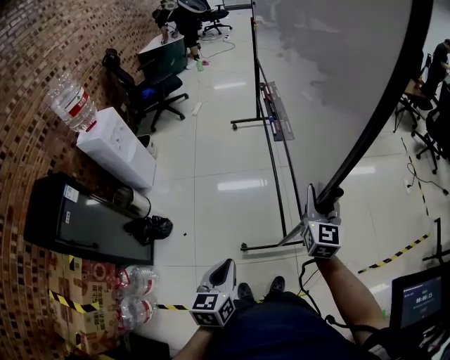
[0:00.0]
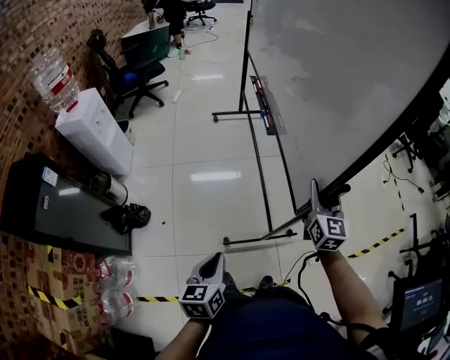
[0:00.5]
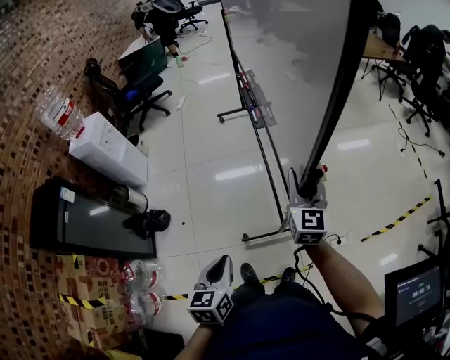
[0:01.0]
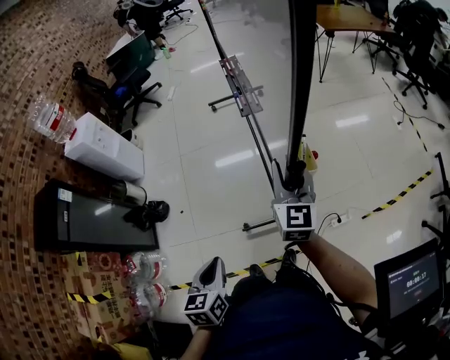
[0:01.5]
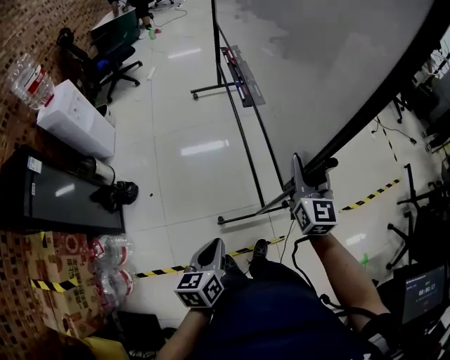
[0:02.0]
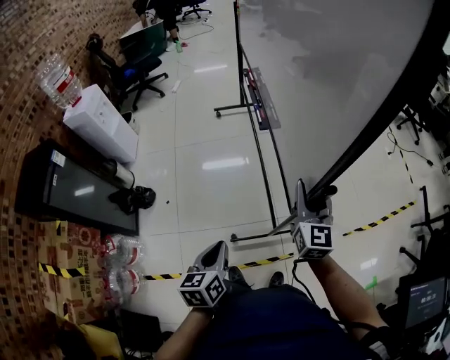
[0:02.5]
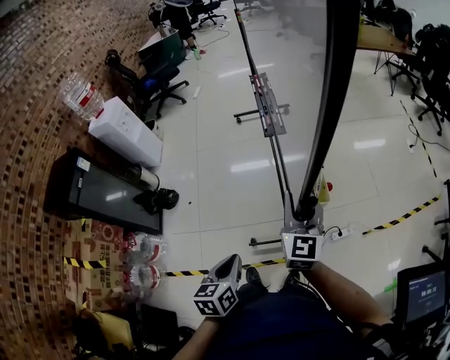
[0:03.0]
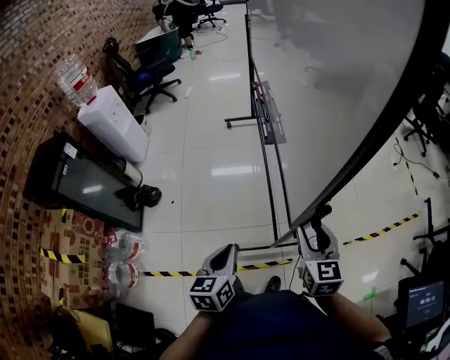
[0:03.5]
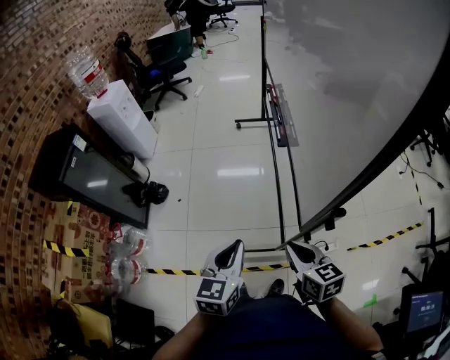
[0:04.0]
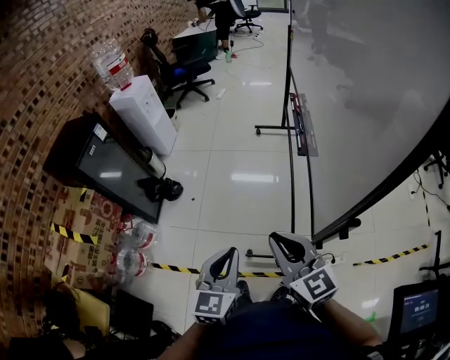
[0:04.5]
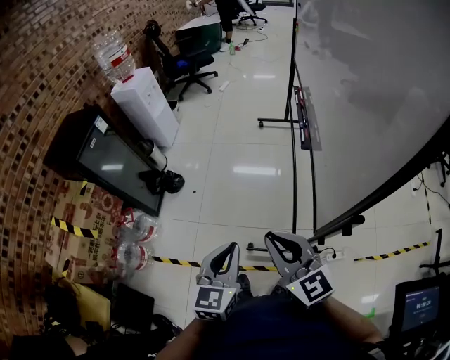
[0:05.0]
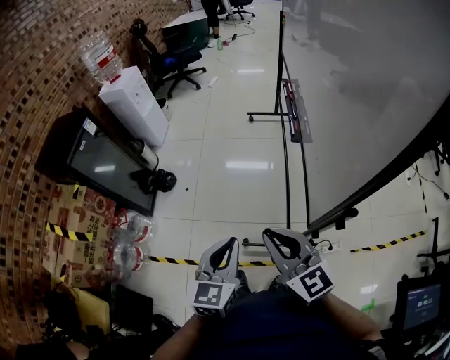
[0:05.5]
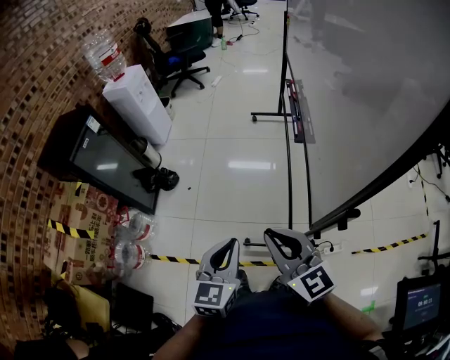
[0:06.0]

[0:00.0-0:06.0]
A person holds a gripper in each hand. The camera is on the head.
0:00.0 to 0:02.0: Both grippers travel together backward and to the right, roughly 15 cm.
0:02.0 to 0:04.0: The left gripper heads upward, covering some 10 cm, and rotates some 20 degrees; the right gripper heads backward and downward, covering approximately 20 cm, and turns by about 50 degrees.
0:04.0 to 0:06.0: The right gripper is displaced upward and to the left by approximately 15 cm, and changes its angle by about 30 degrees.

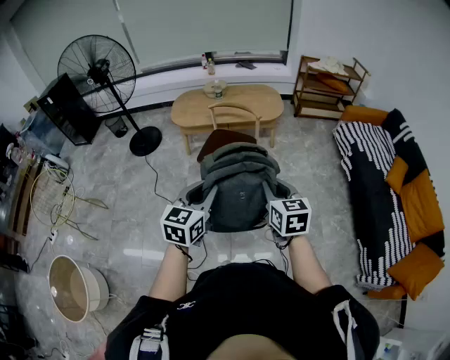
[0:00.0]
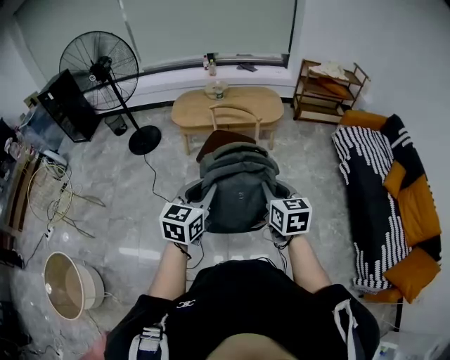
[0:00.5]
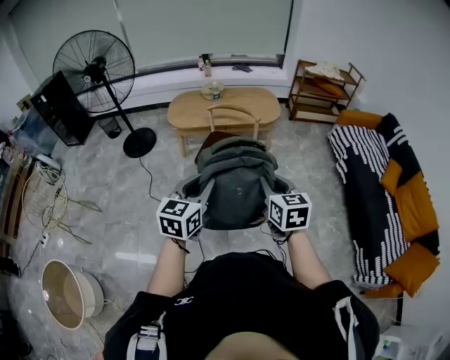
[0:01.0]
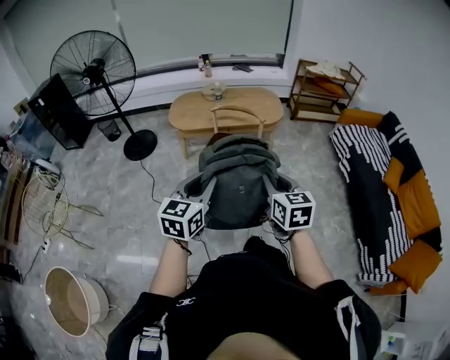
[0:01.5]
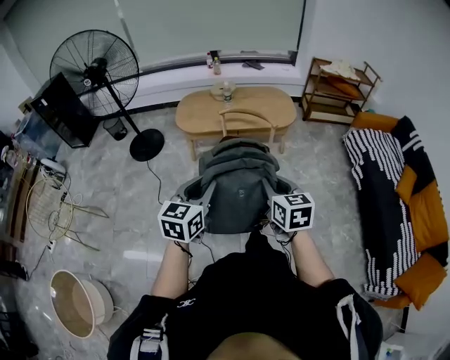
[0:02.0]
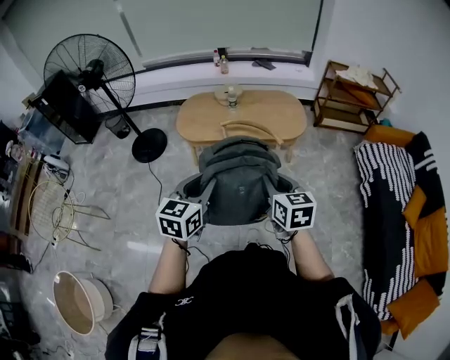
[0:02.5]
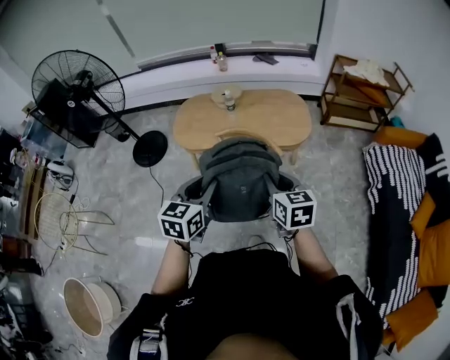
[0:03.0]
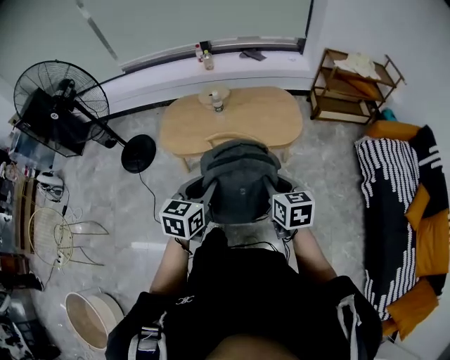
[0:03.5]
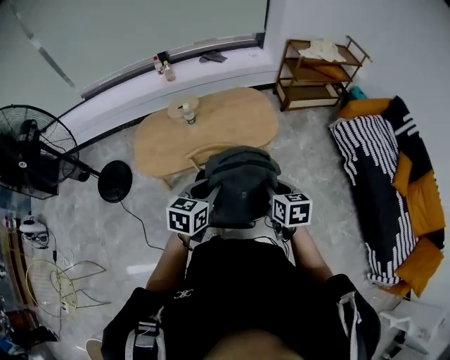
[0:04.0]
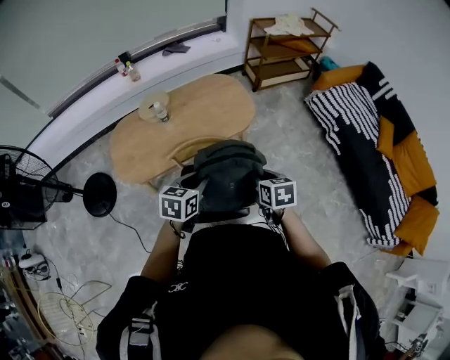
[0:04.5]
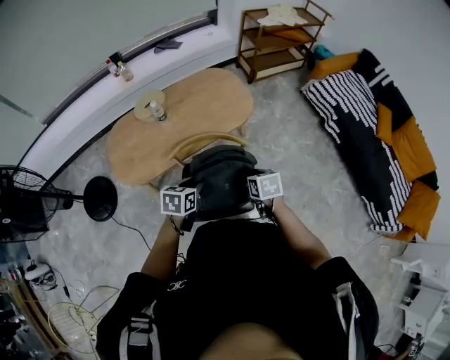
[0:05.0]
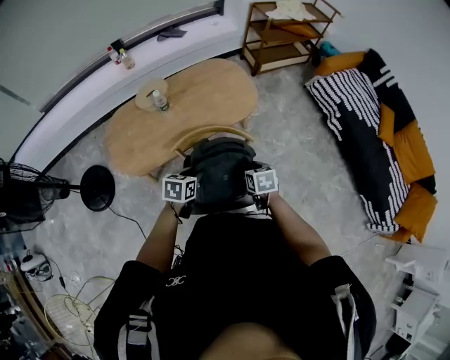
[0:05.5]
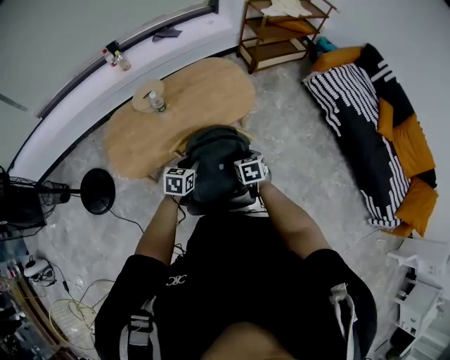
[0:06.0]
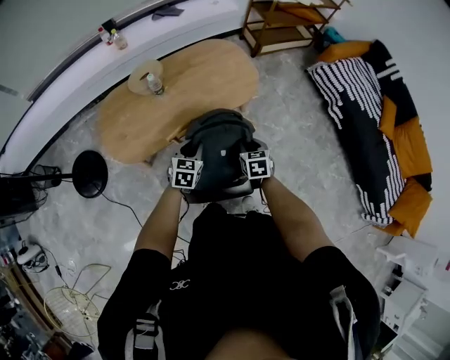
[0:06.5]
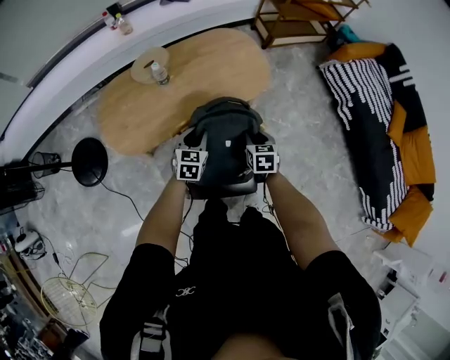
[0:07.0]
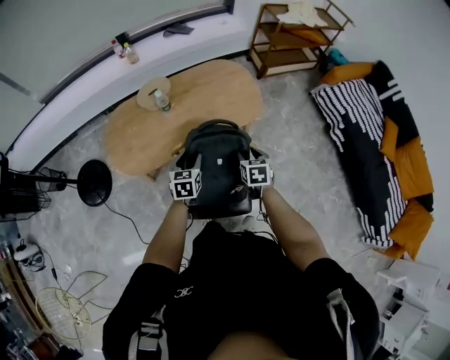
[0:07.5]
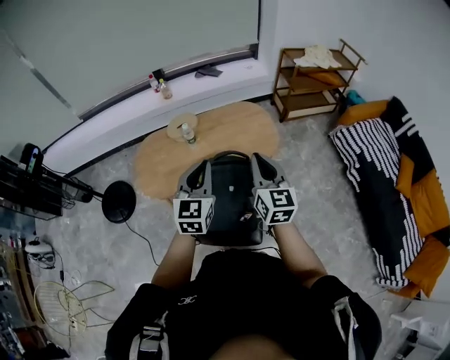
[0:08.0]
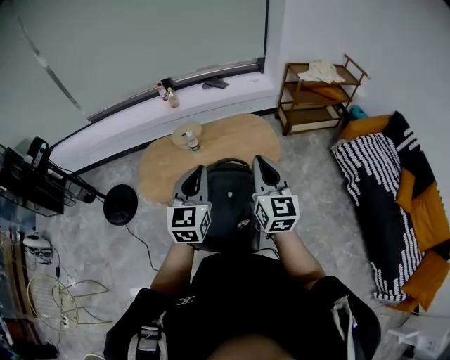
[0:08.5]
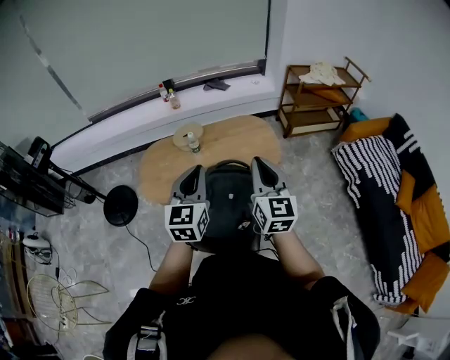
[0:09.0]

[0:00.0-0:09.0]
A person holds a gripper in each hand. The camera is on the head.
0:00.0 to 0:02.0: Both grippers travel together forward and to the left, about 20 cm.
0:02.0 to 0:04.5: Both grippers are carried some 50 cm. The right gripper rotates about 30 degrees; the left gripper changes its angle by roughly 40 degrees.
0:04.5 to 0:07.0: Both grippers travel together downward, forward and to the left, approximately 25 cm.
0:07.0 to 0:09.0: Both grippers move upward, approximately 40 cm. The left gripper rotates about 30 degrees, and closes its fingers. The right gripper points its fingers some 50 degrees further upward, and closes.

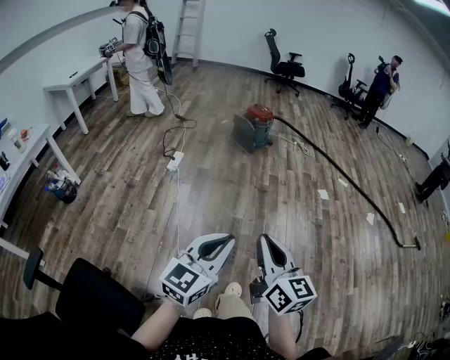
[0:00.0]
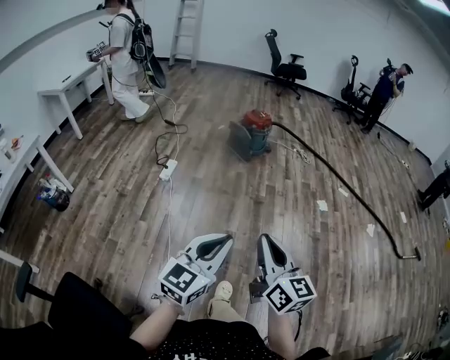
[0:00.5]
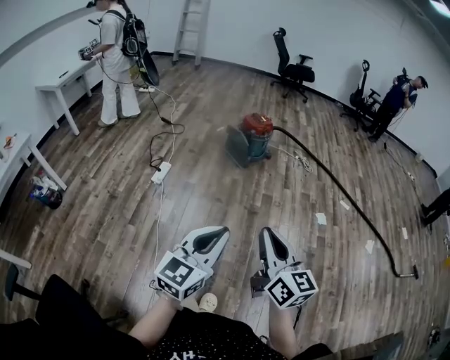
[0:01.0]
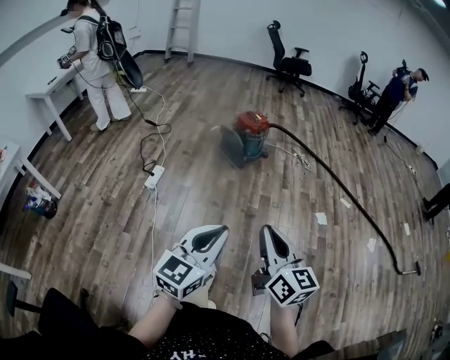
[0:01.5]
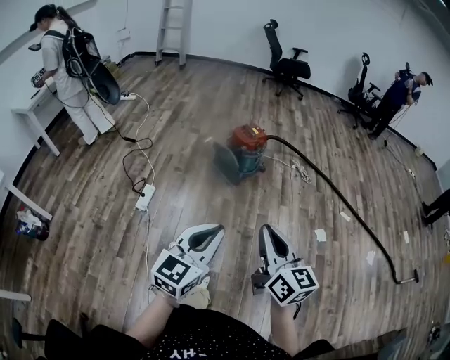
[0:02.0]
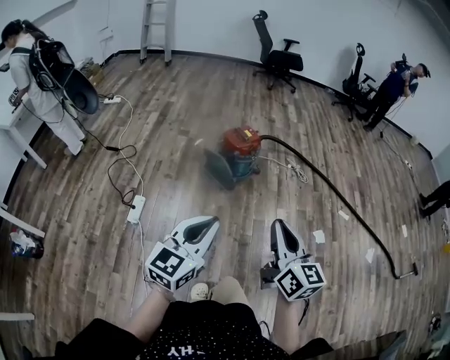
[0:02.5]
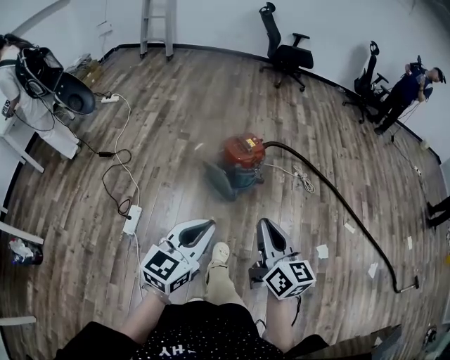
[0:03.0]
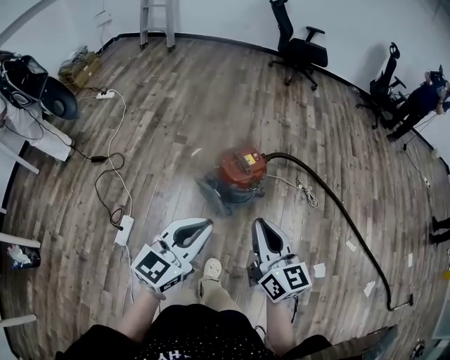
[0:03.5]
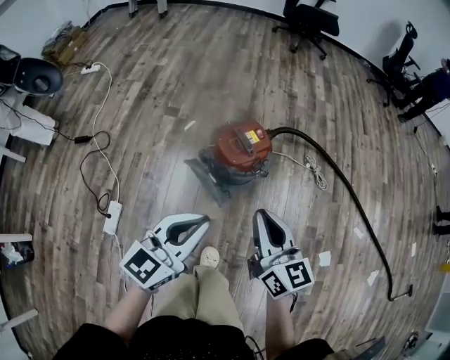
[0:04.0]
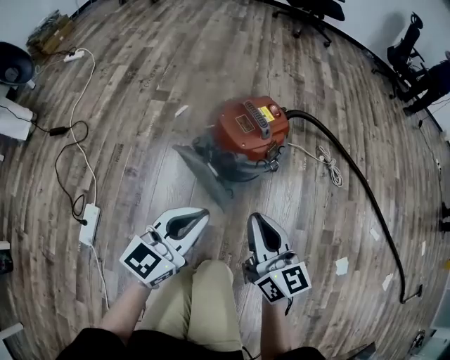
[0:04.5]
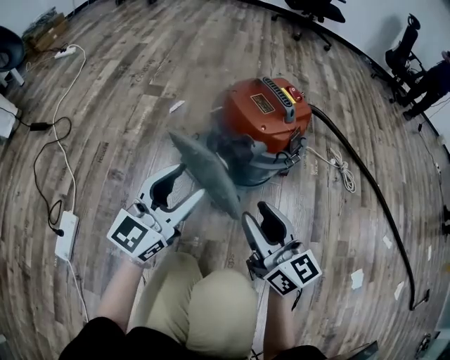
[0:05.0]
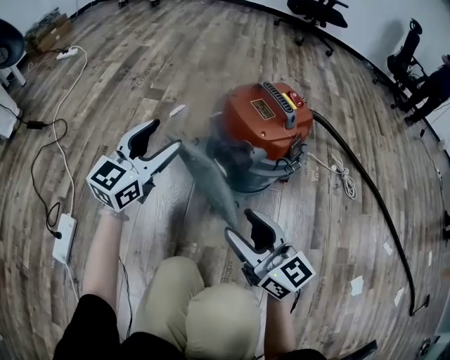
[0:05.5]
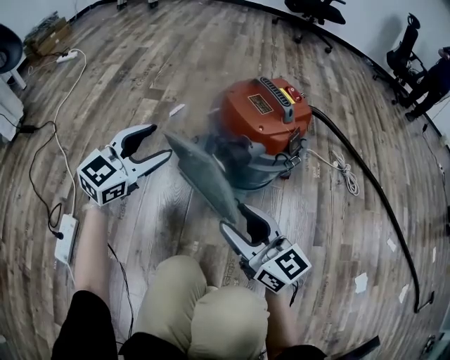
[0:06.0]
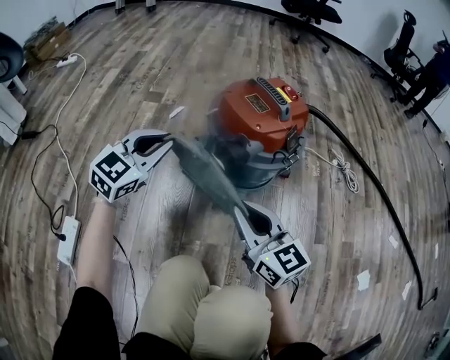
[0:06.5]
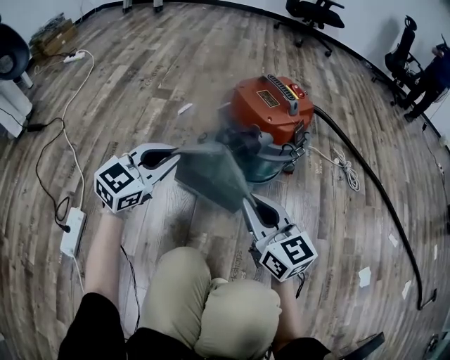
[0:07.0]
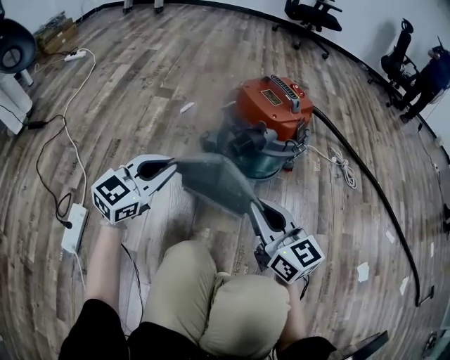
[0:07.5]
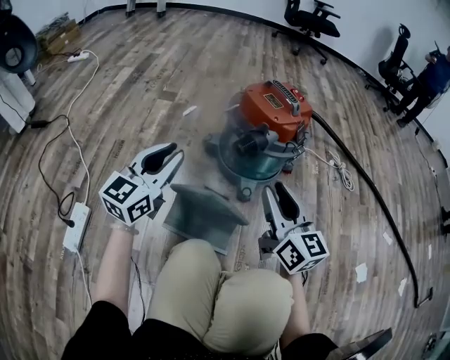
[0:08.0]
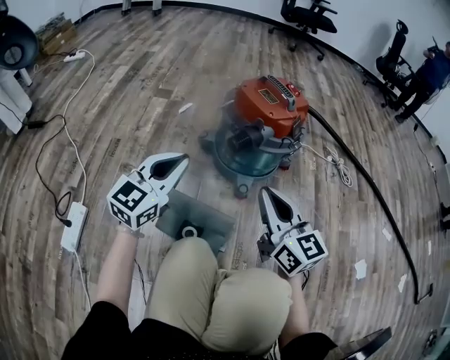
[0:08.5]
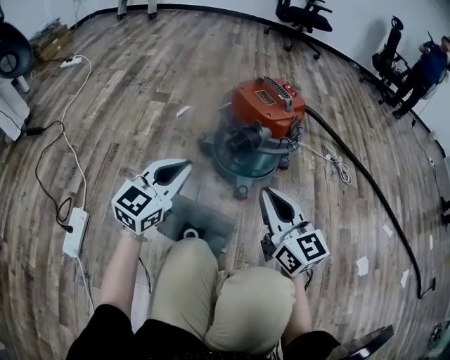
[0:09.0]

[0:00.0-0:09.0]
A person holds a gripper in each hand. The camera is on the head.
0:00.0 to 0:02.0: The pair of grippers is taken forward, approximately 60 cm.
0:02.0 to 0:04.5: Both grippers are carried forward, roughly 60 cm. The two grippers go some 40 cm downward.
0:04.5 to 0:07.0: The right gripper travels downward by roughly 20 cm, and opens and closes again. Meanwhile the left gripper moves downward, to the left and forward, approximately 25 cm, swivels approximately 20 degrees, and opens, then closes again.
0:07.0 to 0:09.0: The right gripper moves approximately 5 cm, and opens, then closes again. Meanwhile the left gripper shifts some 5 cm backward.

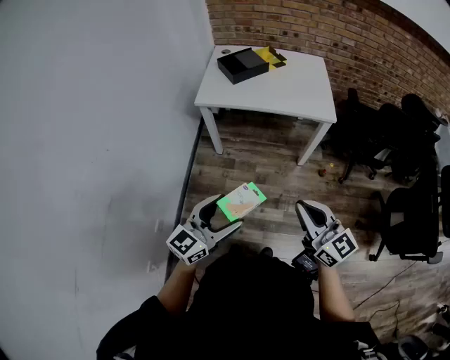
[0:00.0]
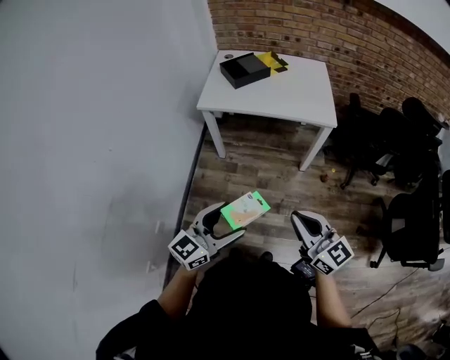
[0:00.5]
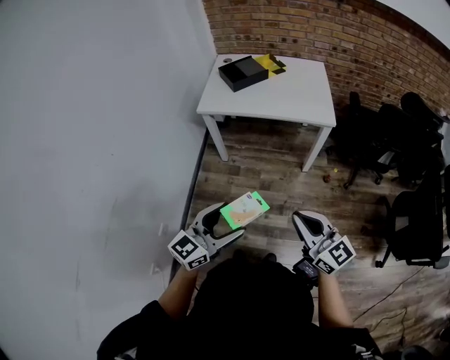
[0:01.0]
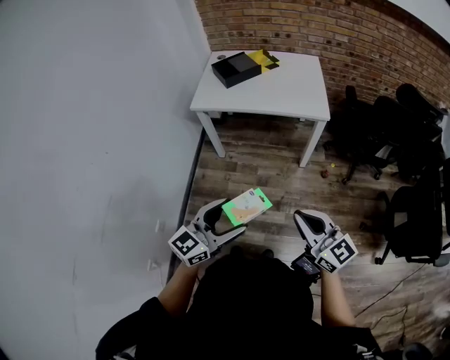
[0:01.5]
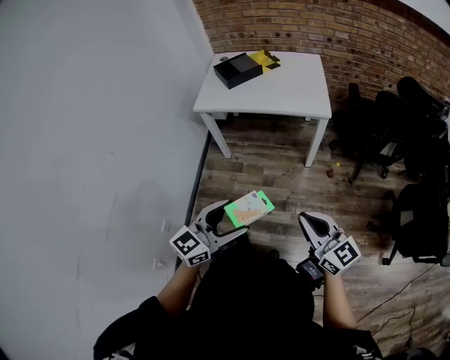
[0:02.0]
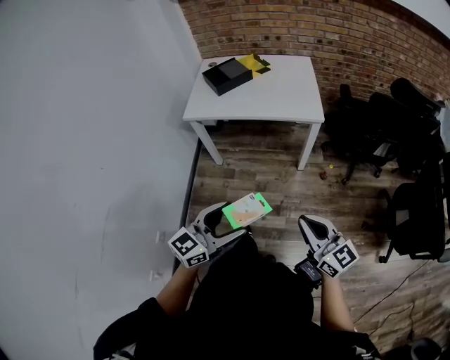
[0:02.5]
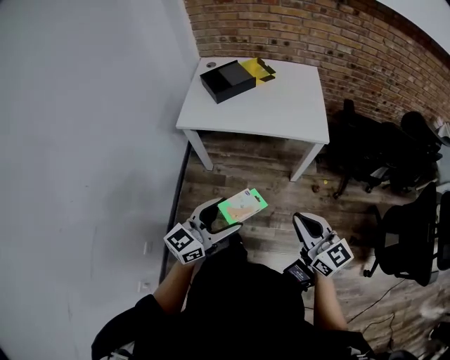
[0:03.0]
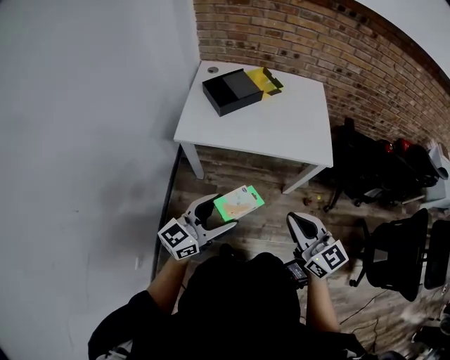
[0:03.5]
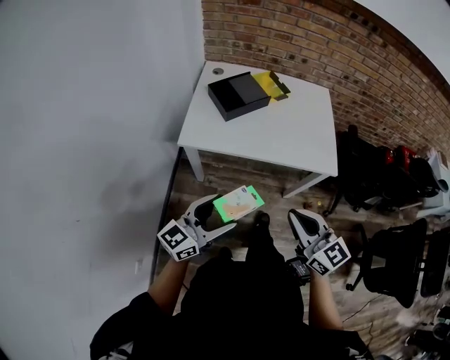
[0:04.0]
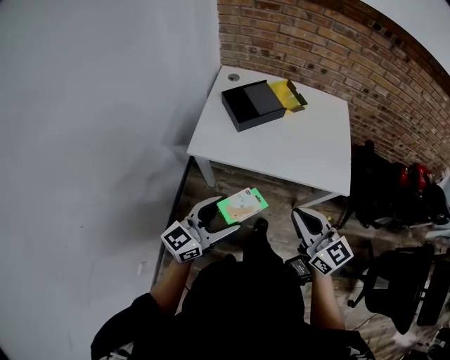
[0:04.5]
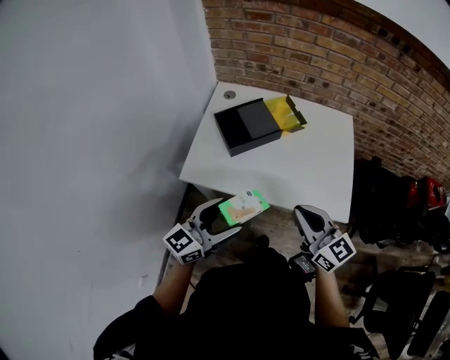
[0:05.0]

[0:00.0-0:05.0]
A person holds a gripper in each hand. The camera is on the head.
0:00.0 to 0:02.5: Both grippers move to the right, approximately 10 cm.
0:02.5 to 0:05.0: The two grippers travel together, forward, roughly 50 cm.
